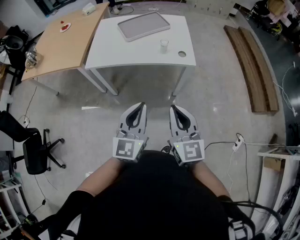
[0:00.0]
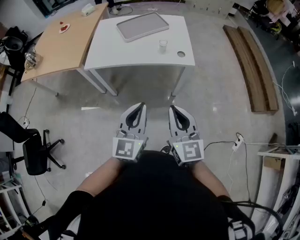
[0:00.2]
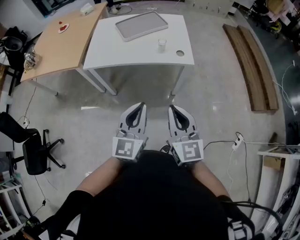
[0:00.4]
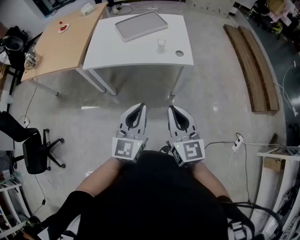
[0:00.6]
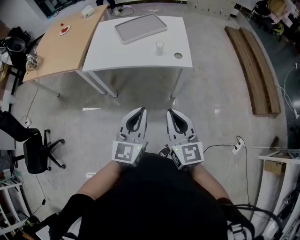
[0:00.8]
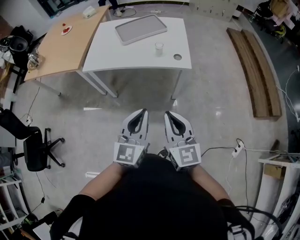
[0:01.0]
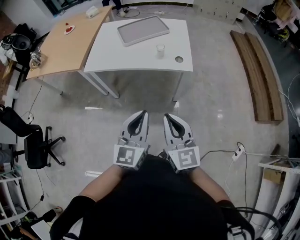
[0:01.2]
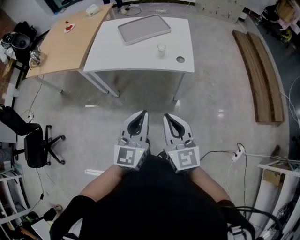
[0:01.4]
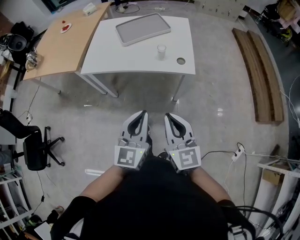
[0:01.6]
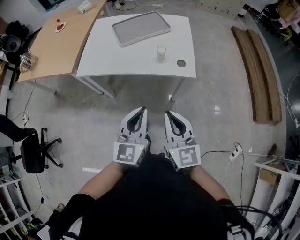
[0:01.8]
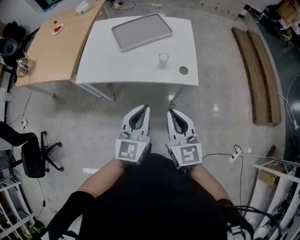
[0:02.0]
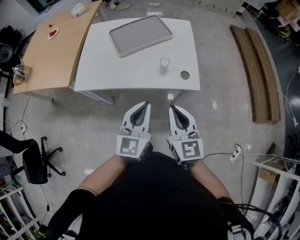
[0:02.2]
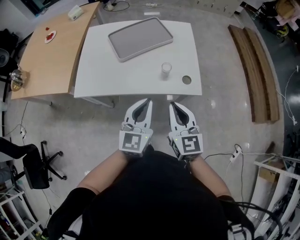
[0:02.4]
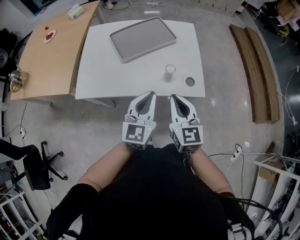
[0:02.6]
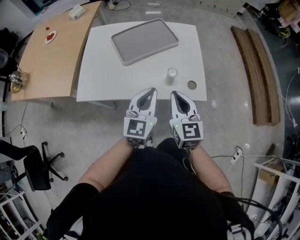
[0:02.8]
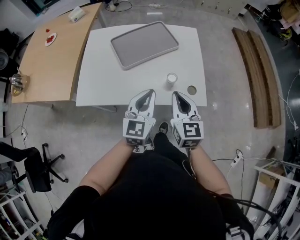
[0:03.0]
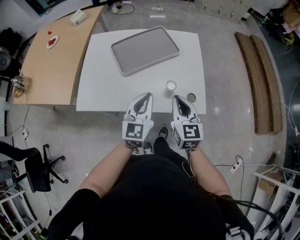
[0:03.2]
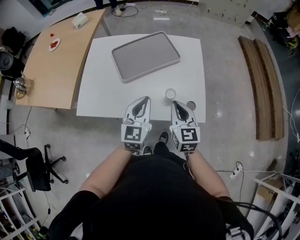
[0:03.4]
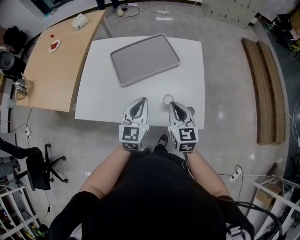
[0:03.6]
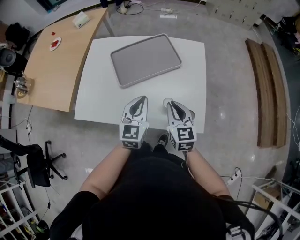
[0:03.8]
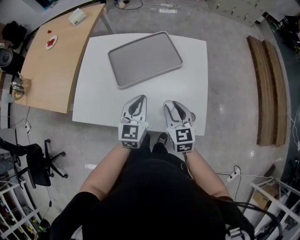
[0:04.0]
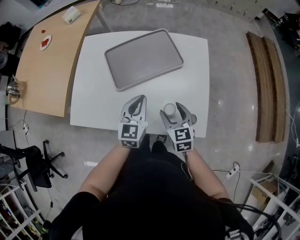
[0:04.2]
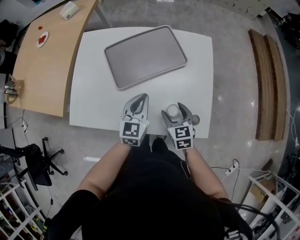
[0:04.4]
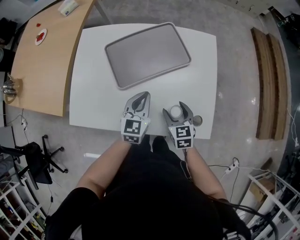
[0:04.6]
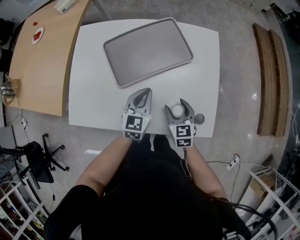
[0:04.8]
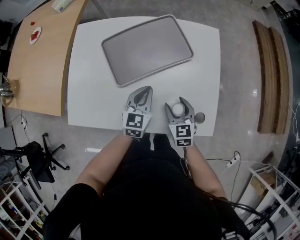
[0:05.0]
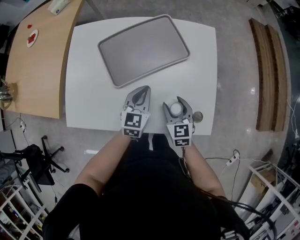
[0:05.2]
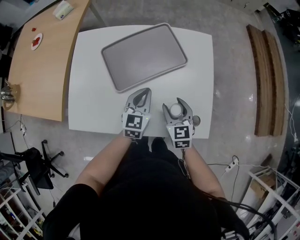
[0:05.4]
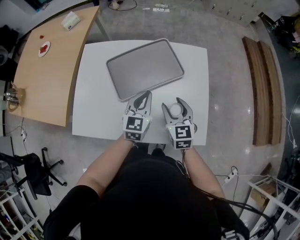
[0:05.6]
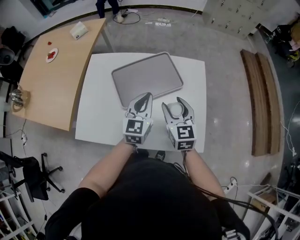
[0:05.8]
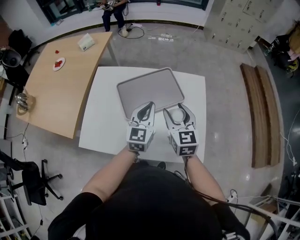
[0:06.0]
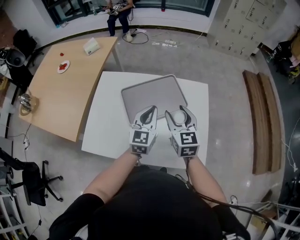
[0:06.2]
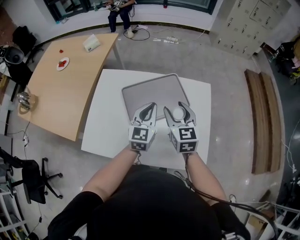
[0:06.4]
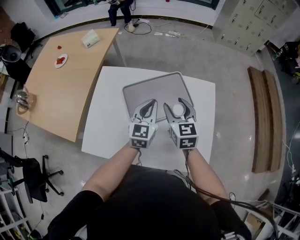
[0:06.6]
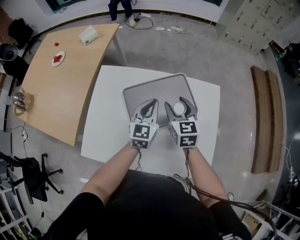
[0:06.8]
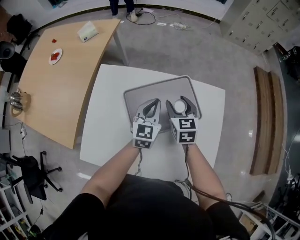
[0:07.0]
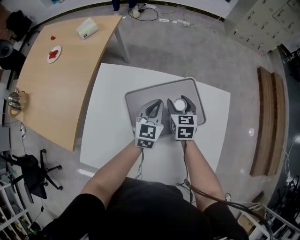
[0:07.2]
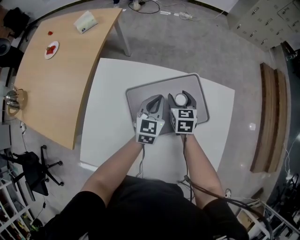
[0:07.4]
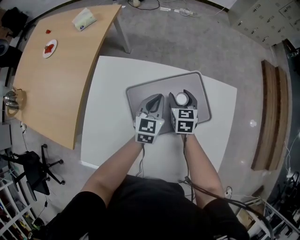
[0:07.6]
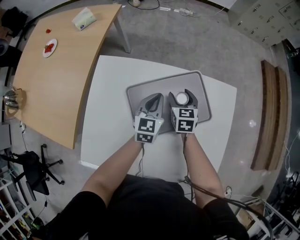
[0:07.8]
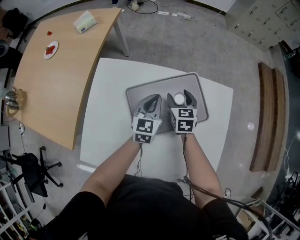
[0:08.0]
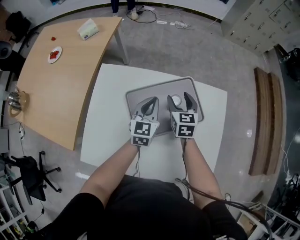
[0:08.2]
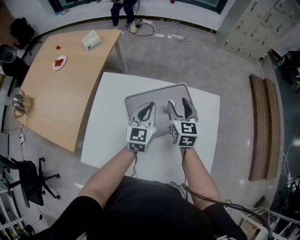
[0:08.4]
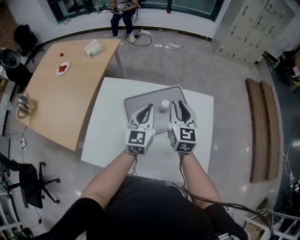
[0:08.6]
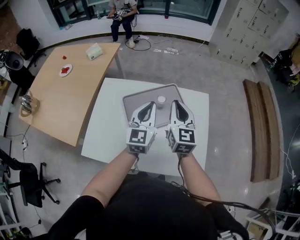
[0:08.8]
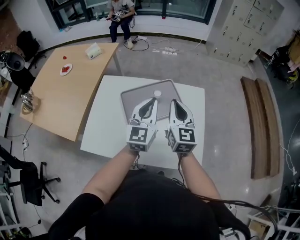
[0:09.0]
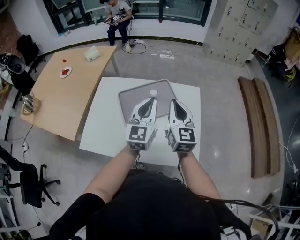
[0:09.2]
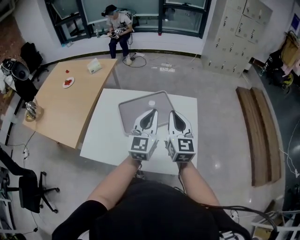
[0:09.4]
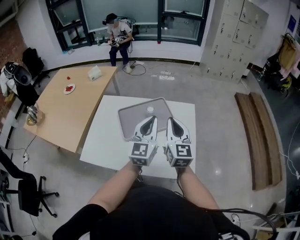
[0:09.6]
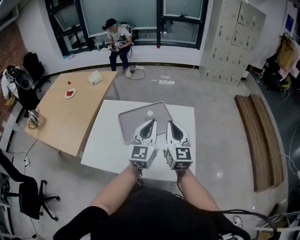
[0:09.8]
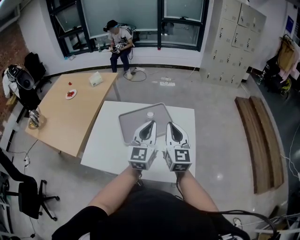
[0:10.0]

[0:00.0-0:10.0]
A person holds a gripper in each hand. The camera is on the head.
0:00.0 to 0:01.4: The grippers both shift to the right by roughly 5 cm.
0:01.4 to 0:02.8: Both grippers travel together forward, some 35 cm.
0:02.8 to 0:04.2: Both grippers move forward and downward, approximately 25 cm. The right gripper rotates about 20 degrees, and opens its fingers.
0:04.2 to 0:05.8: The right gripper heads upward and forward, covering approximately 15 cm; the left gripper shifts about 10 cm forward and upward.
0:05.8 to 0:07.2: Both grippers move forward and downward, some 25 cm.
0:07.2 to 0:08.6: The grippers both shift upward and backward by approximately 20 cm. The right gripper changes its angle by about 20 degrees, and closes.
0:08.6 to 0:10.0: The left gripper is displaced backward, to the right and upward by approximately 25 cm. The right gripper is displaced backward, upward and to the right by approximately 25 cm, and closes up.

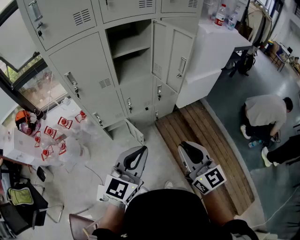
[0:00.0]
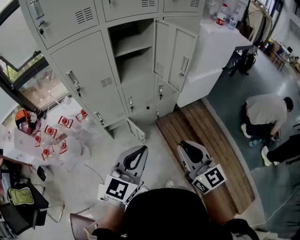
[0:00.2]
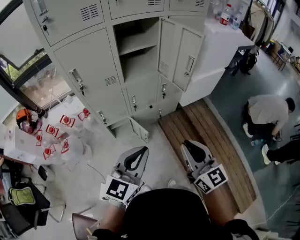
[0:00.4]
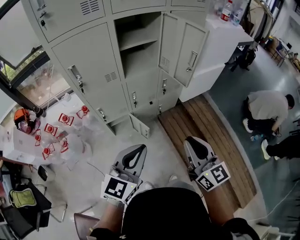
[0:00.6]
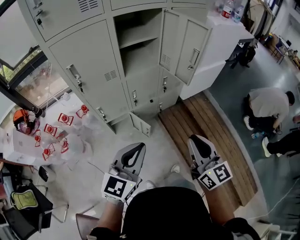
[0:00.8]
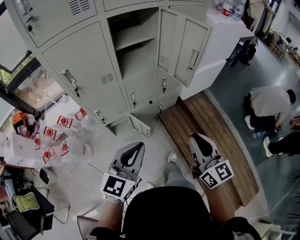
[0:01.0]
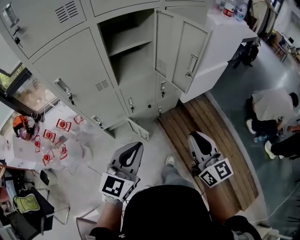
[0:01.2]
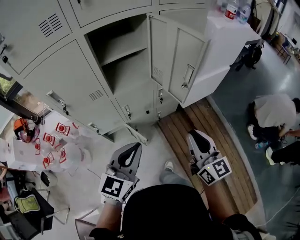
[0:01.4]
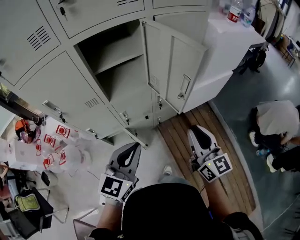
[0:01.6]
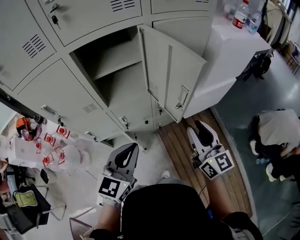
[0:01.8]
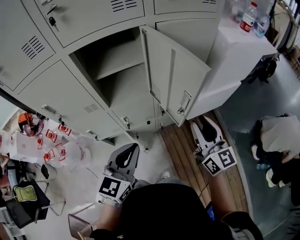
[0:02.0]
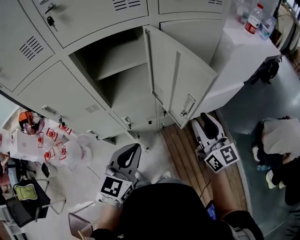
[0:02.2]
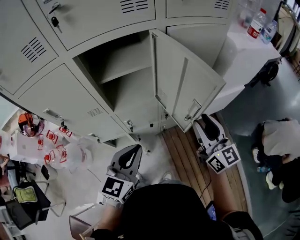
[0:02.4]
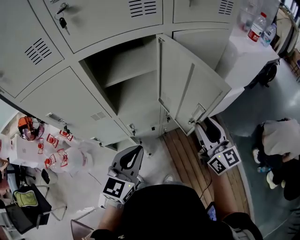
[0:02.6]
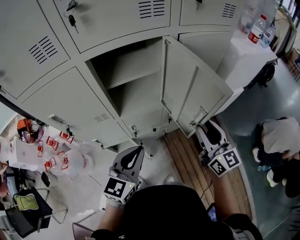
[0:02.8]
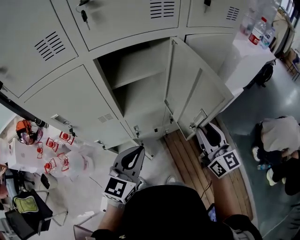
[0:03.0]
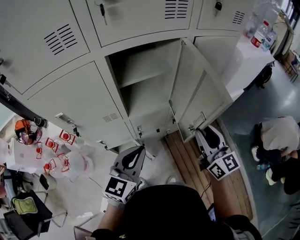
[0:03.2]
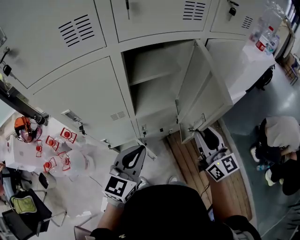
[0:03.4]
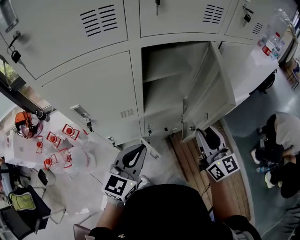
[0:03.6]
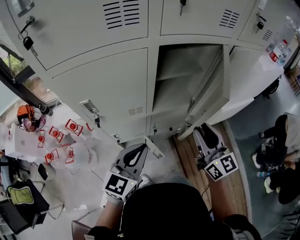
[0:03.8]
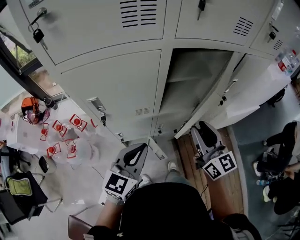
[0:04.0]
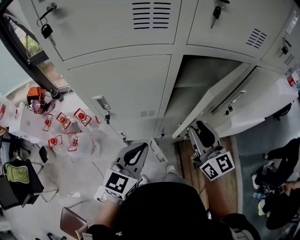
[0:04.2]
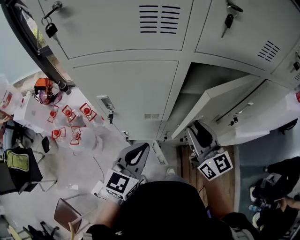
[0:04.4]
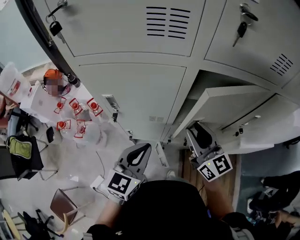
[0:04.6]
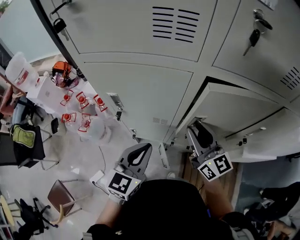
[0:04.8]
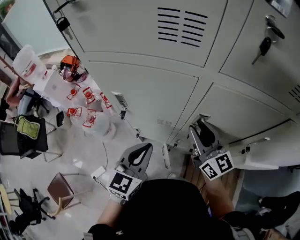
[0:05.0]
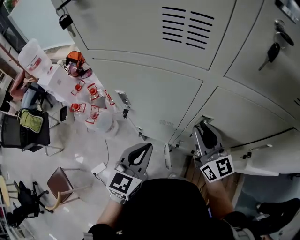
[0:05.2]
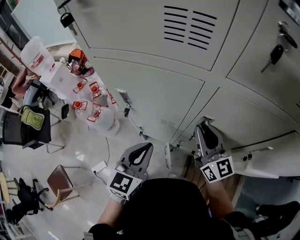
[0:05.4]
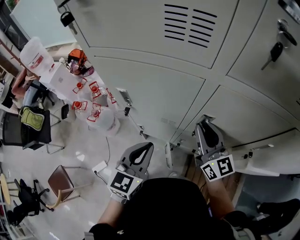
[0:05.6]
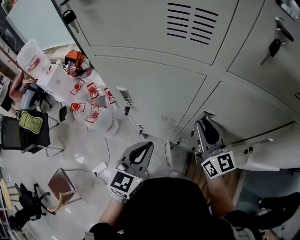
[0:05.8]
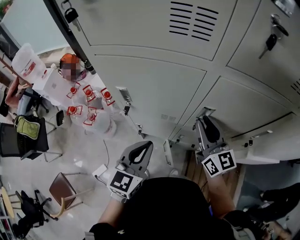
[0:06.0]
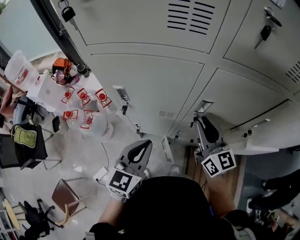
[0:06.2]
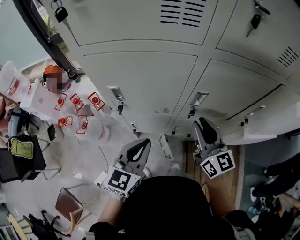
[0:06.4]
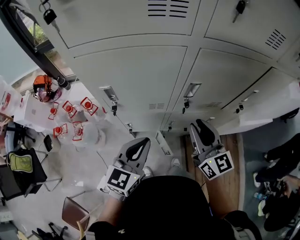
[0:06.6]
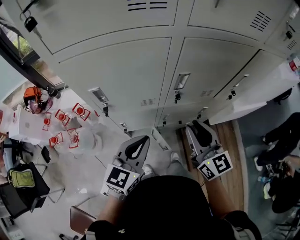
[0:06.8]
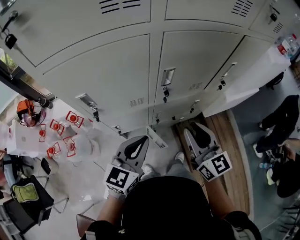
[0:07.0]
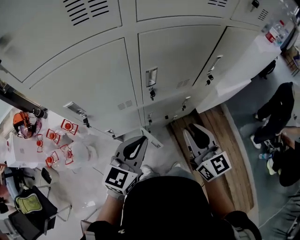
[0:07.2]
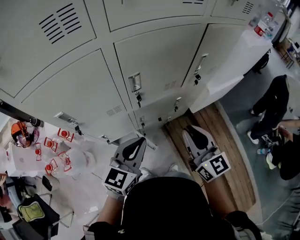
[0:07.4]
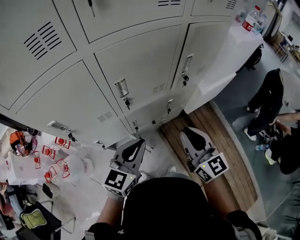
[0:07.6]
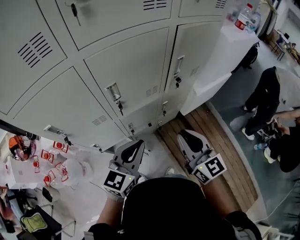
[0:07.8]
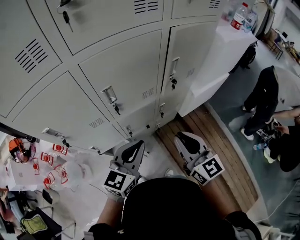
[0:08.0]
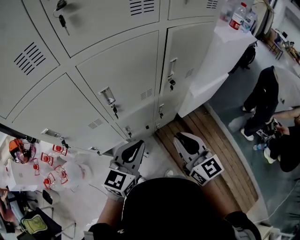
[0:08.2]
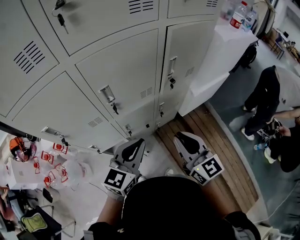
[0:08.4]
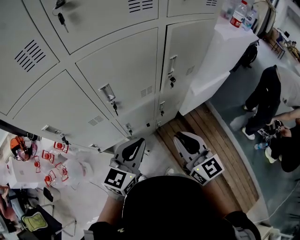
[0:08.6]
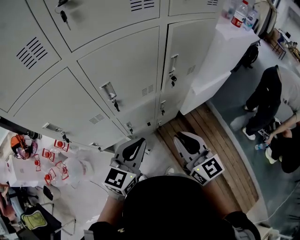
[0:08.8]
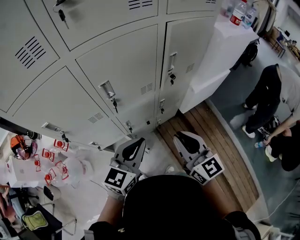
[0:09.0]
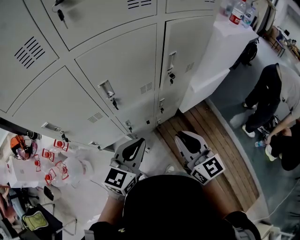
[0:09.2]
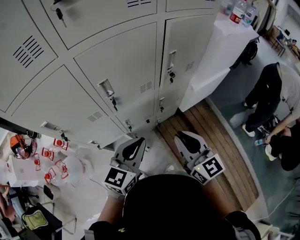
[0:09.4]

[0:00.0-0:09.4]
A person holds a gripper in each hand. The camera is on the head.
0:00.0 to 0:01.6: Both grippers move forward, approximately 20 cm.
0:01.6 to 0:03.2: The right gripper goes about 10 cm forward and to the left, and opens up. The left gripper moves to the left and forward, approximately 10 cm.
0:03.2 to 0:04.8: The right gripper moves about 30 cm, and swivels about 30 degrees. The left gripper ends up about 15 cm from where it was, and swivels some 30 degrees.
0:04.8 to 0:06.2: The grippers stay close to where they were, moving slightly.
0:06.2 to 0:07.8: The right gripper ends up some 25 cm from where it was, and swivels approximately 30 degrees. Meanwhile the left gripper ends up roughly 20 cm from where it was, and swivels some 40 degrees.
0:07.8 to 0:09.4: The grippers stay close to where they were, moving slightly.

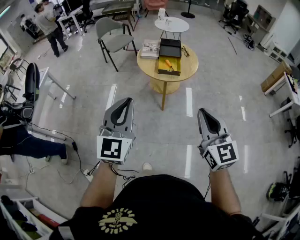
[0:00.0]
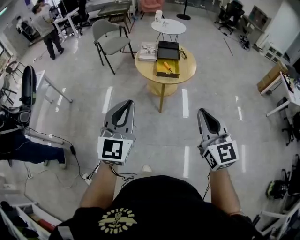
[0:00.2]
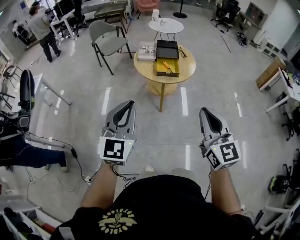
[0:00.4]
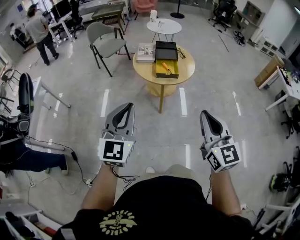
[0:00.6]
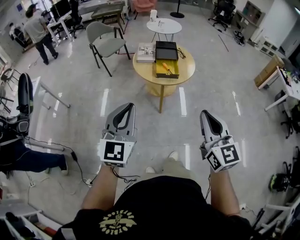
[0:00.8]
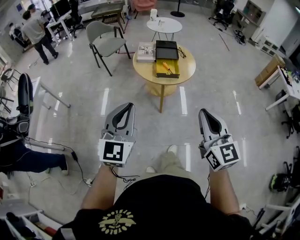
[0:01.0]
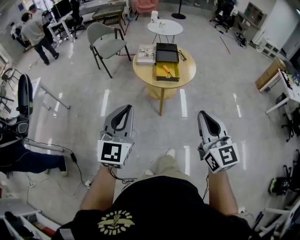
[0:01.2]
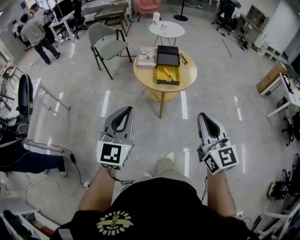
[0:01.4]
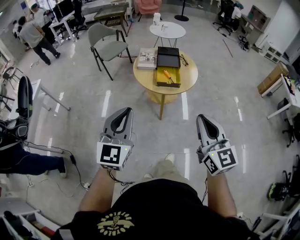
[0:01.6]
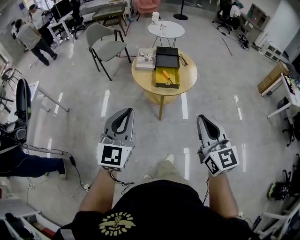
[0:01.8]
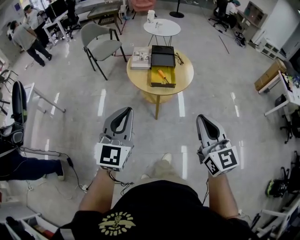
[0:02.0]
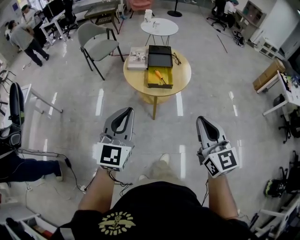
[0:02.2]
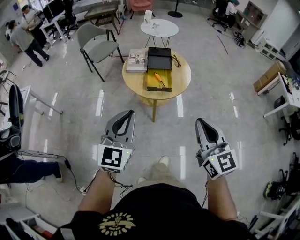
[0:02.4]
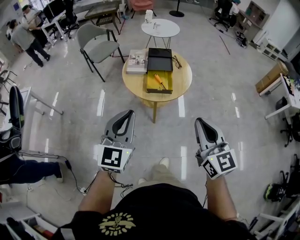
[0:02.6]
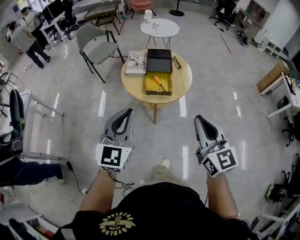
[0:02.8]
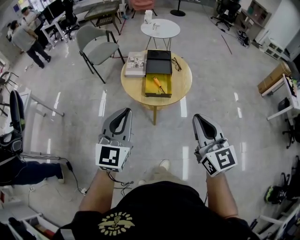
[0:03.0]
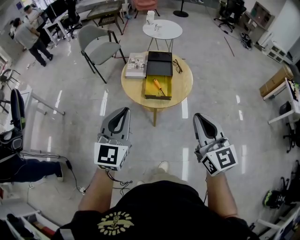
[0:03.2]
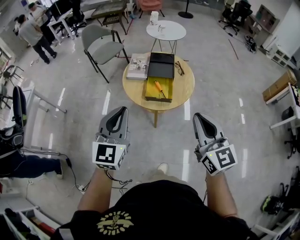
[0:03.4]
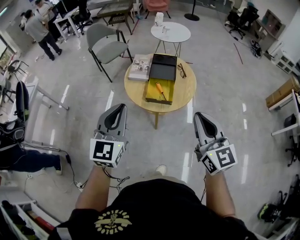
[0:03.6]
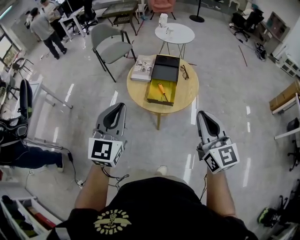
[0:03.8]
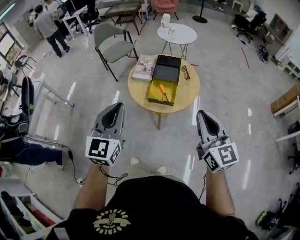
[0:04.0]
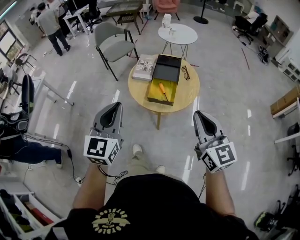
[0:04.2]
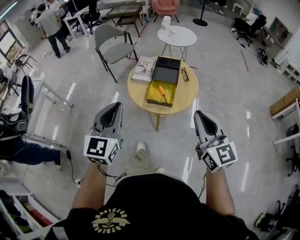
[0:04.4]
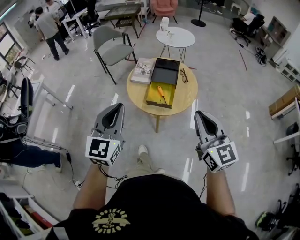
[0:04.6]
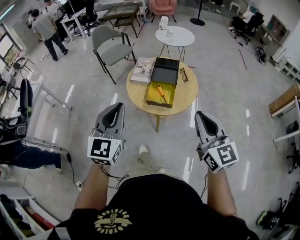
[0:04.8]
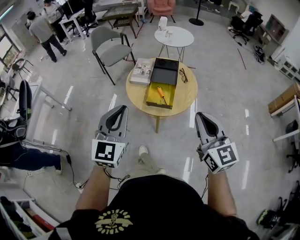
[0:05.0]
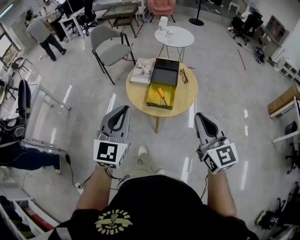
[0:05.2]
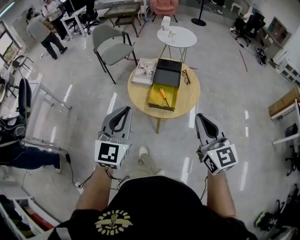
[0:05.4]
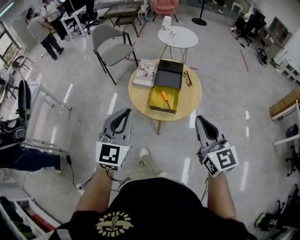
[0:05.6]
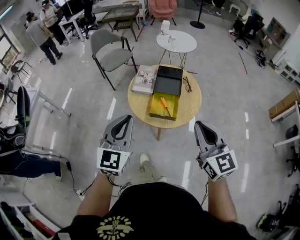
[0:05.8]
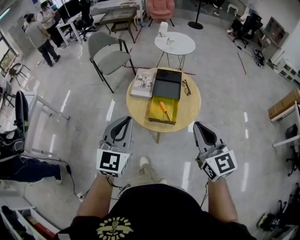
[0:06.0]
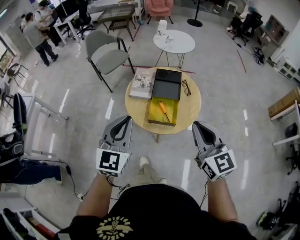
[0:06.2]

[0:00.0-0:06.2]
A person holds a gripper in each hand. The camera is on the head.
0:00.0 to 0:01.6: Both grippers move forward, some 10 cm.
0:01.6 to 0:03.2: The grippers both shift forward and to the right by some 20 cm.
0:03.2 to 0:04.6: The right gripper goes about 5 cm to the right.
0:04.6 to 0:06.2: The grippers both shift forward by some 15 cm.
